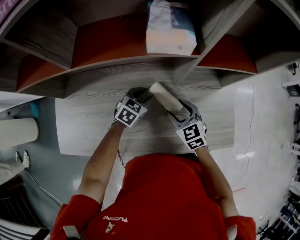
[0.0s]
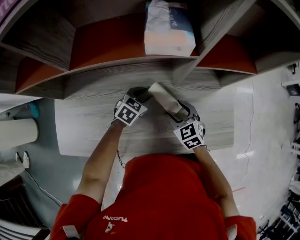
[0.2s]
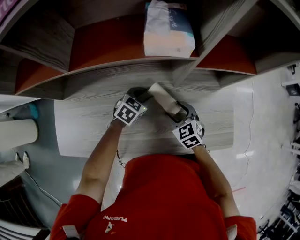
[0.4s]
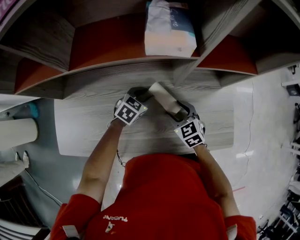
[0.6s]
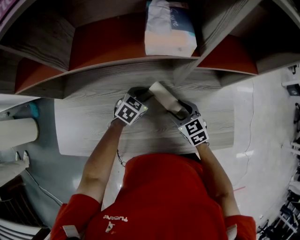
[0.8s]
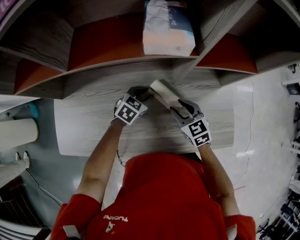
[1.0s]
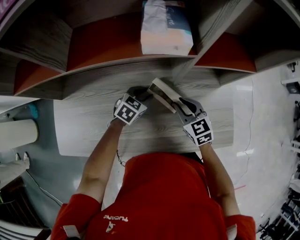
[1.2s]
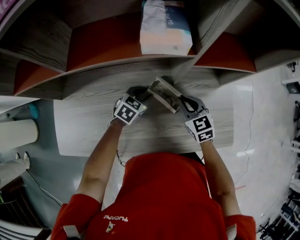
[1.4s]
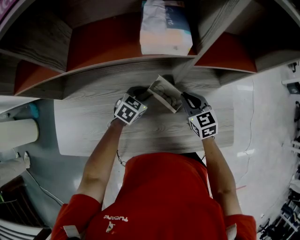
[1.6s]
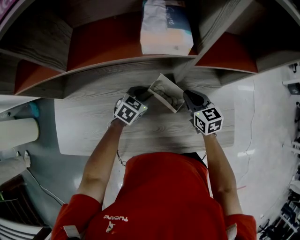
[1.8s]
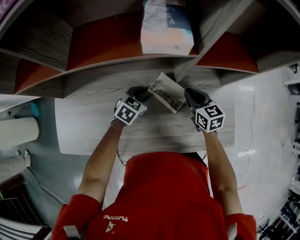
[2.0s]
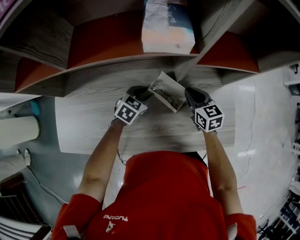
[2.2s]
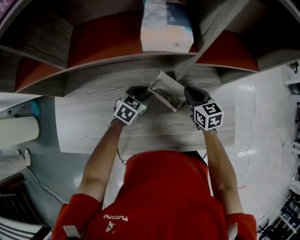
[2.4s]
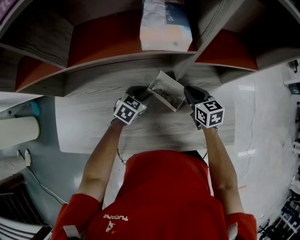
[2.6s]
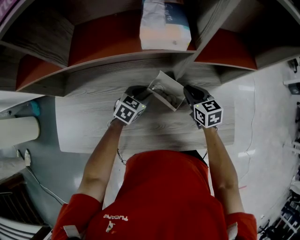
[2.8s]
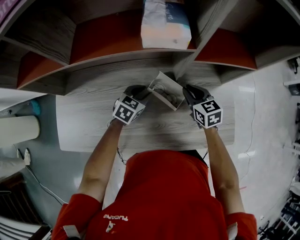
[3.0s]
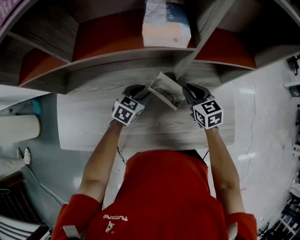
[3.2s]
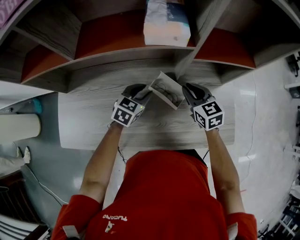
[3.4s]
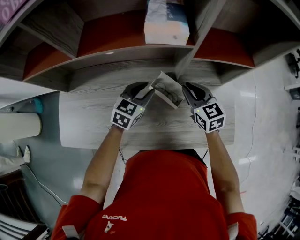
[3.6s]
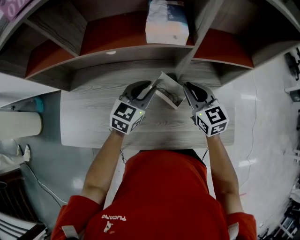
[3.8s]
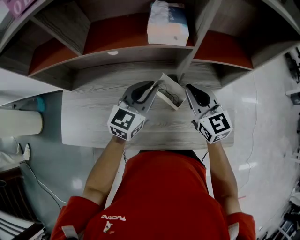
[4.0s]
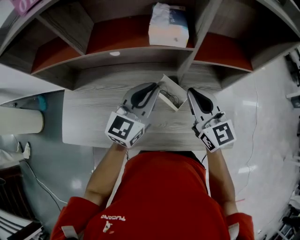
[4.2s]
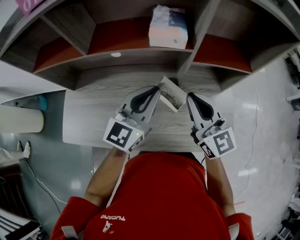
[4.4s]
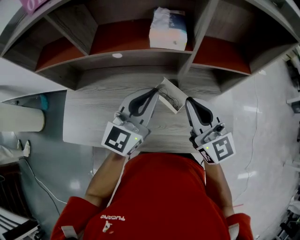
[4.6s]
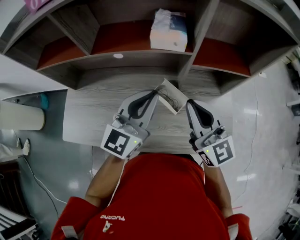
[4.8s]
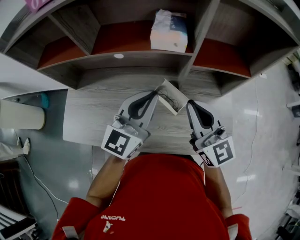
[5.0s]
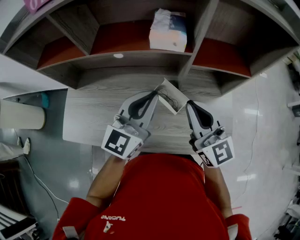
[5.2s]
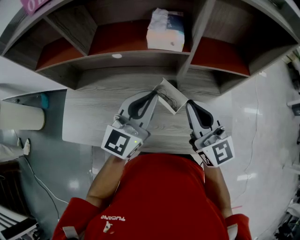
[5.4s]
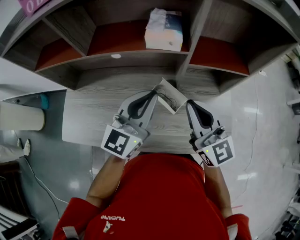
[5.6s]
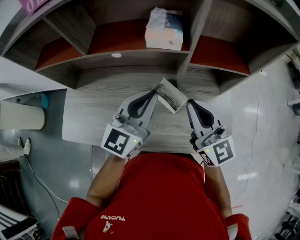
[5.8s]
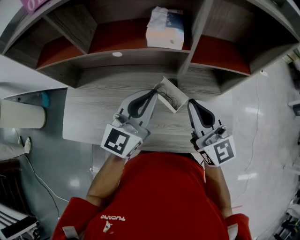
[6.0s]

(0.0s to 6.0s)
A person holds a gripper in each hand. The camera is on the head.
0.0s - 1.6s: The right gripper shifts approximately 5 cm forward, and closes.
1.6s - 3.0s: There are only small adjustments of the grippers.
3.0s - 4.4s: Both grippers move upward, some 25 cm. The right gripper points its fingers about 40 degrees further upward; the left gripper points its fingers about 40 degrees further upward, and closes up.
4.4s - 6.0s: The grippers make only small movements.

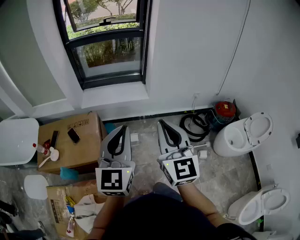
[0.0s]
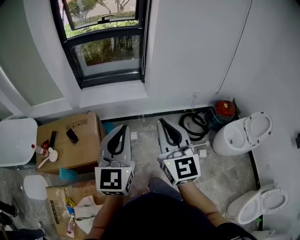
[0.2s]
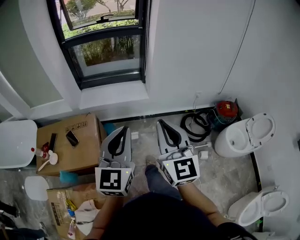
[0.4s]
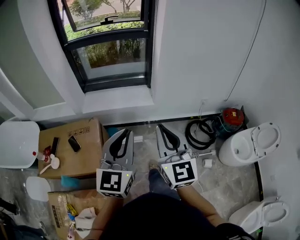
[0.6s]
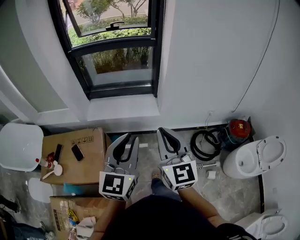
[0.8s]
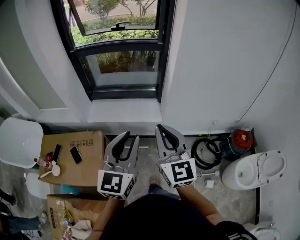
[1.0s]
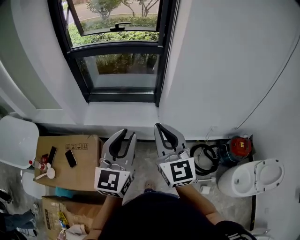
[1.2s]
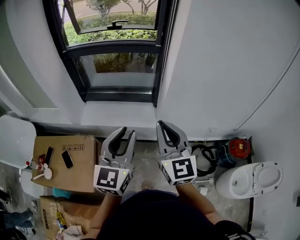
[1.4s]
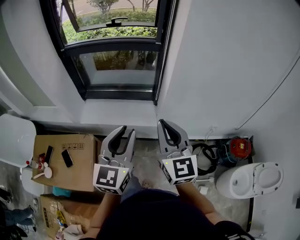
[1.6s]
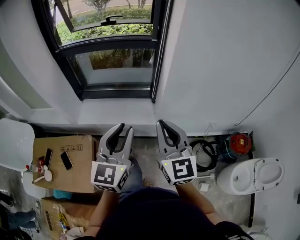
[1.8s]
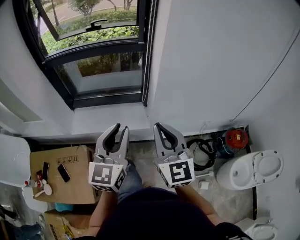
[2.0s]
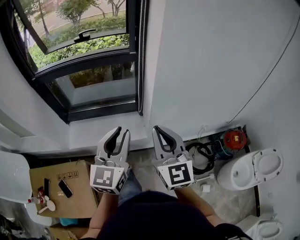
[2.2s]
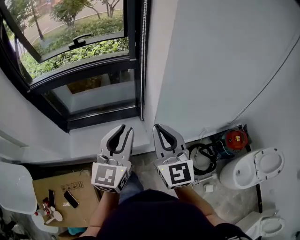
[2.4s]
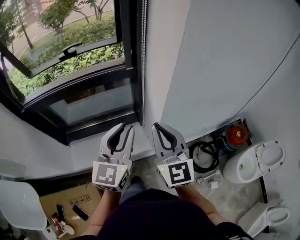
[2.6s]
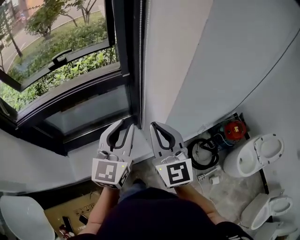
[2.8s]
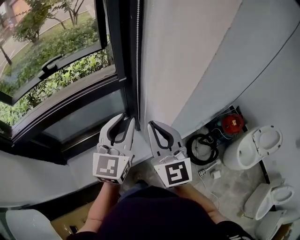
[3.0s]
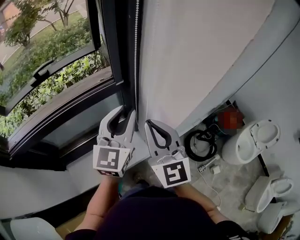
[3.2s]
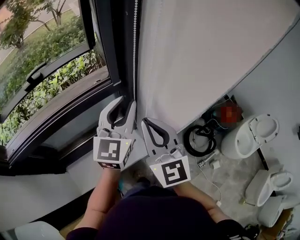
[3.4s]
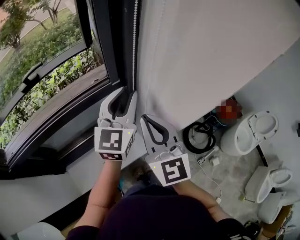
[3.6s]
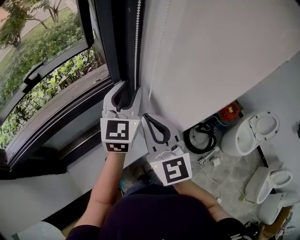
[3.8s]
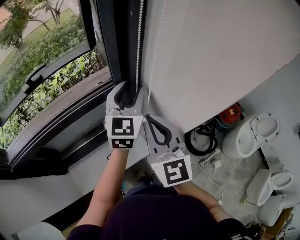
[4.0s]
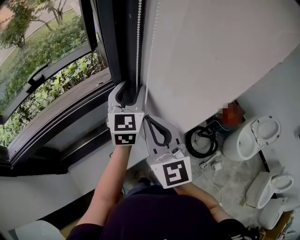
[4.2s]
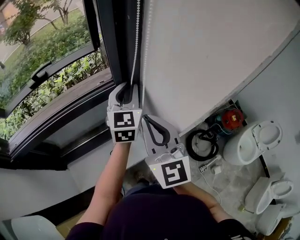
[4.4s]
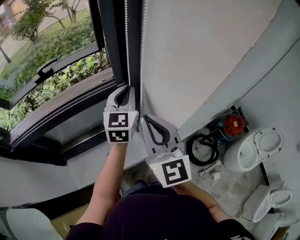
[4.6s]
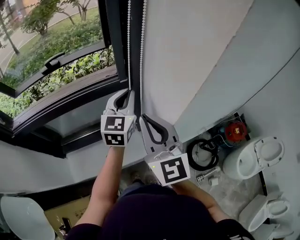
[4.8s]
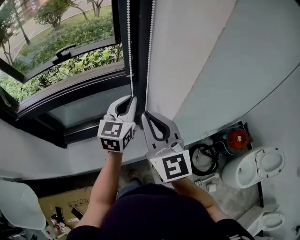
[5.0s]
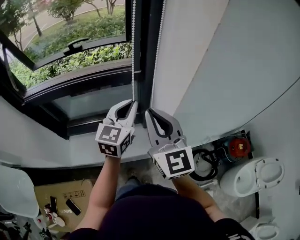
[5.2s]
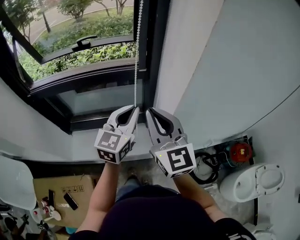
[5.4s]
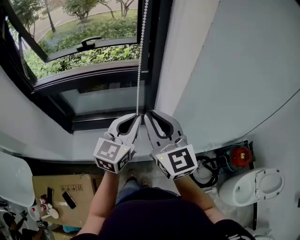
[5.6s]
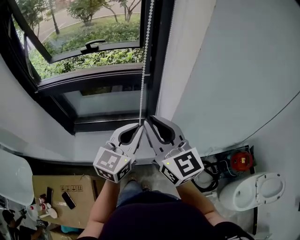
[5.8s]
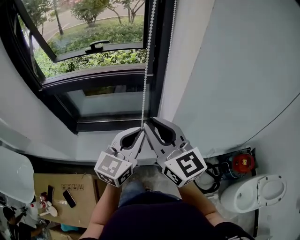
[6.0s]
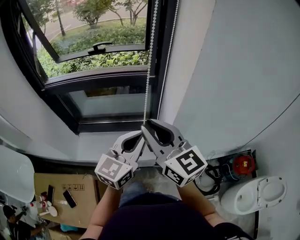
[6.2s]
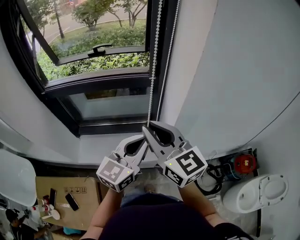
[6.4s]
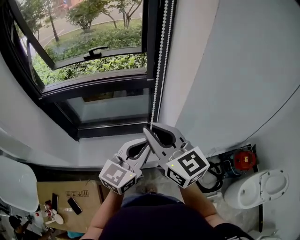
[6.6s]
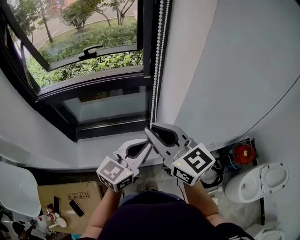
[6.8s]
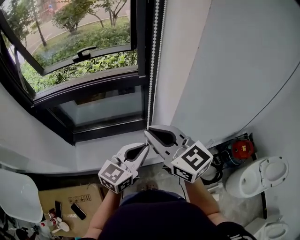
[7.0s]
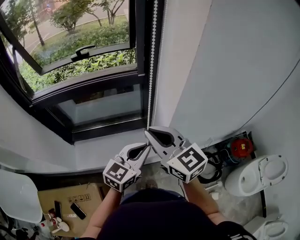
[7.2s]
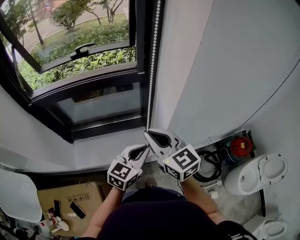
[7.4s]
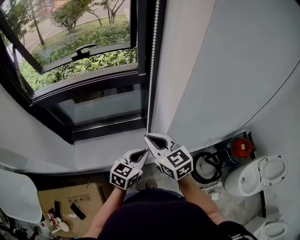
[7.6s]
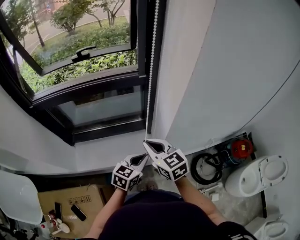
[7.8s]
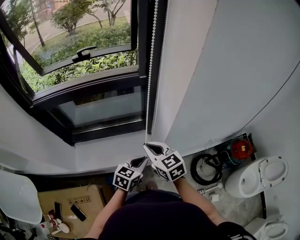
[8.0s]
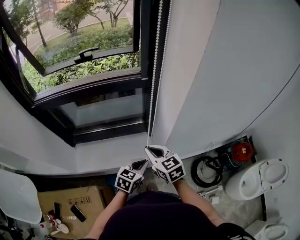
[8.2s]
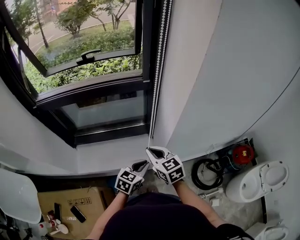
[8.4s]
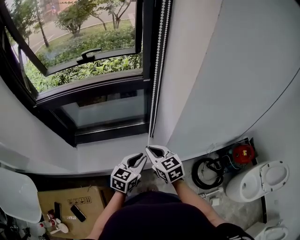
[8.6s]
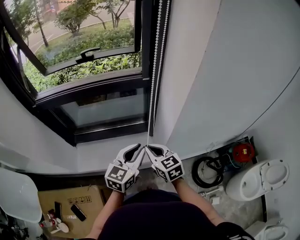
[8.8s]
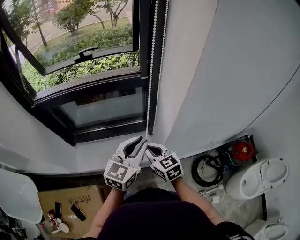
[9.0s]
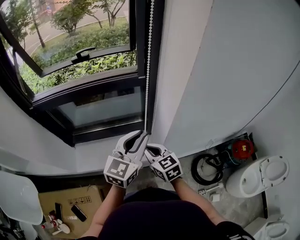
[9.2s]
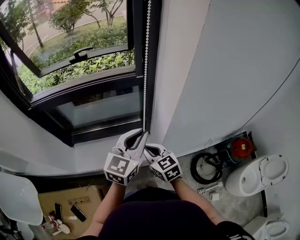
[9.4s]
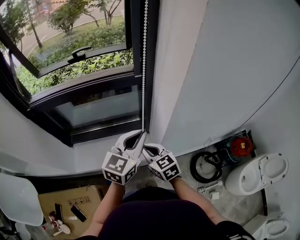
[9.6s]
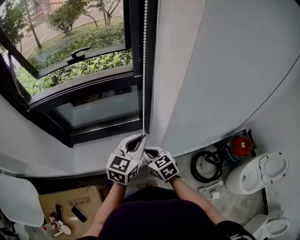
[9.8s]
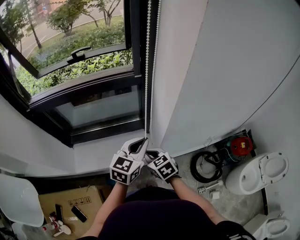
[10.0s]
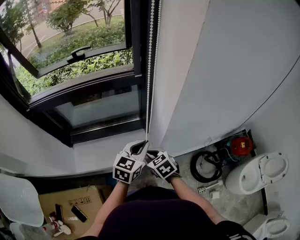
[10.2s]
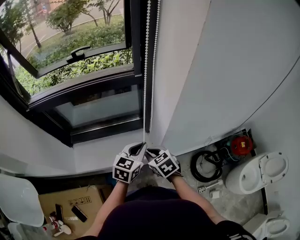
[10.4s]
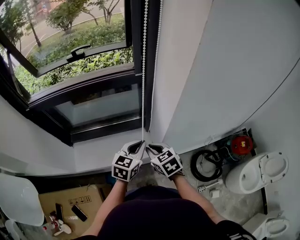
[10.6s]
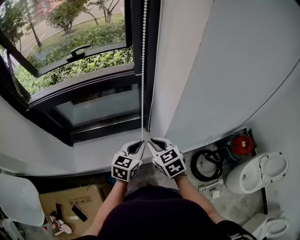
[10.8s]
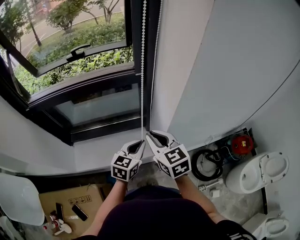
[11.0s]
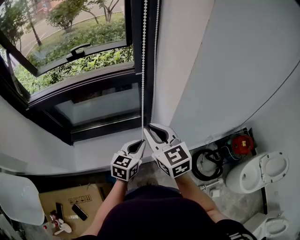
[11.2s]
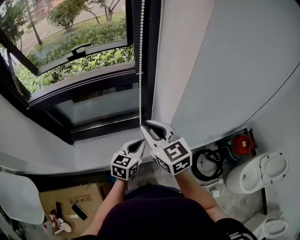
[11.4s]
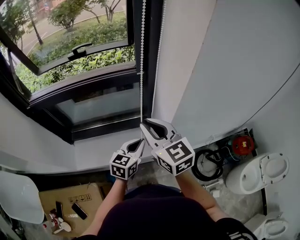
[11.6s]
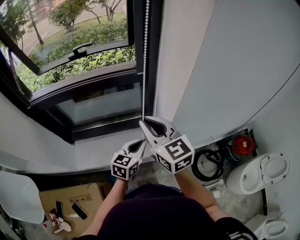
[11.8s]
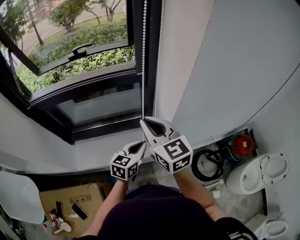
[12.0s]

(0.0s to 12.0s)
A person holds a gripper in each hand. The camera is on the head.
0.0s - 1.6s: Both grippers travel together forward, about 40 cm.
1.6s - 3.0s: The right gripper ends up about 30 cm from where it was, and changes its angle by some 30 degrees, while the left gripper shifts by about 40 cm, and turns by about 30 degrees.
3.0s - 4.4s: The right gripper moves forward, roughly 5 cm. The left gripper moves forward, approximately 15 cm, and opens and closes again.
4.4s - 6.0s: The left gripper travels backward by some 30 cm, while the right gripper goes approximately 15 cm backward, and turns by about 40 degrees.
6.0s - 7.6s: Both grippers move downward, some 15 cm. The right gripper changes its angle by about 20 degrees; the left gripper swivels about 30 degrees.
7.6s - 9.0s: The left gripper shifts approximately 10 cm upward; the right gripper travels downward by approximately 10 cm.
9.0s - 10.4s: The left gripper travels downward by roughly 10 cm. The right gripper shifts some 5 cm downward, and rotates about 20 degrees.
10.4s - 12.0s: The right gripper shifts about 20 cm upward, and angles its fingers upward, by roughly 30 degrees.

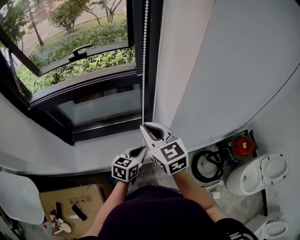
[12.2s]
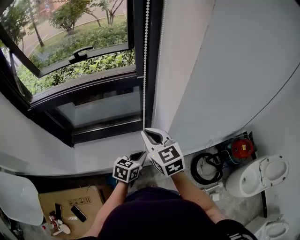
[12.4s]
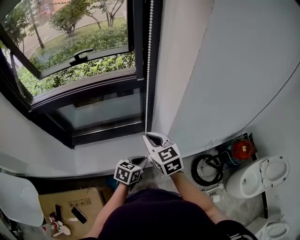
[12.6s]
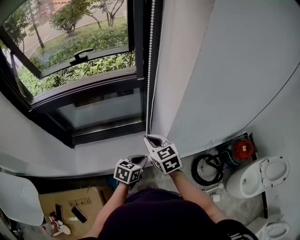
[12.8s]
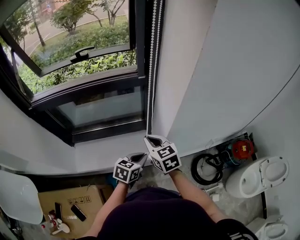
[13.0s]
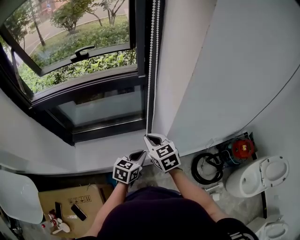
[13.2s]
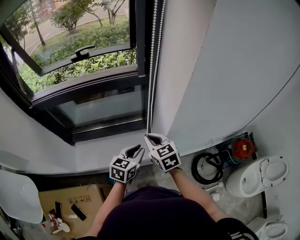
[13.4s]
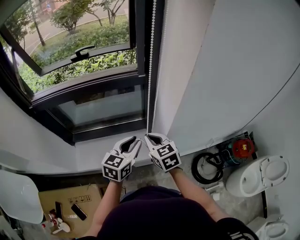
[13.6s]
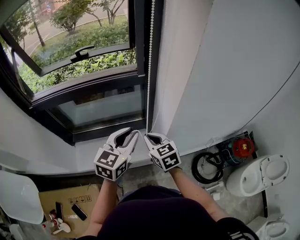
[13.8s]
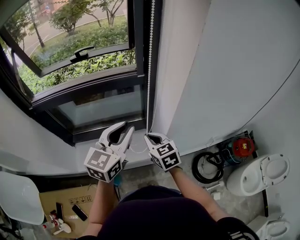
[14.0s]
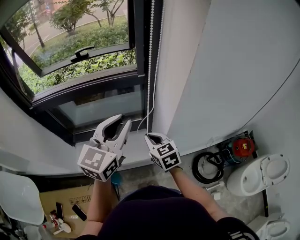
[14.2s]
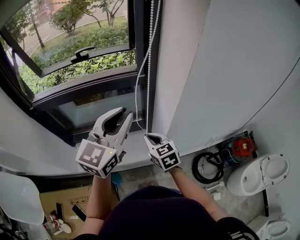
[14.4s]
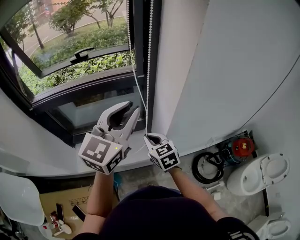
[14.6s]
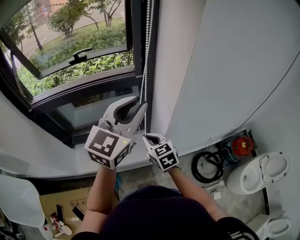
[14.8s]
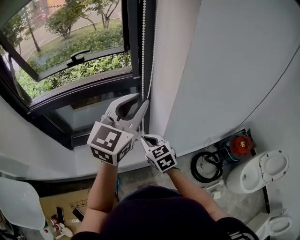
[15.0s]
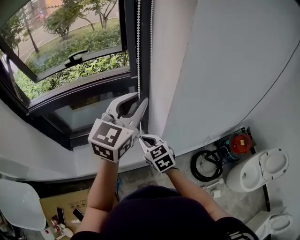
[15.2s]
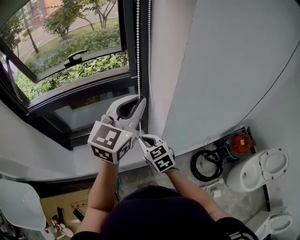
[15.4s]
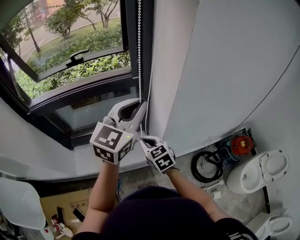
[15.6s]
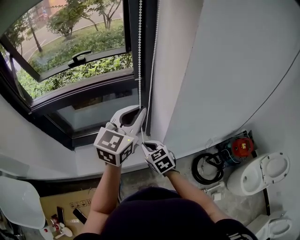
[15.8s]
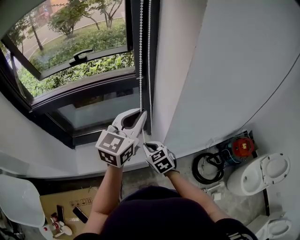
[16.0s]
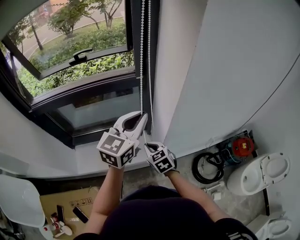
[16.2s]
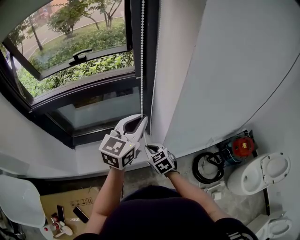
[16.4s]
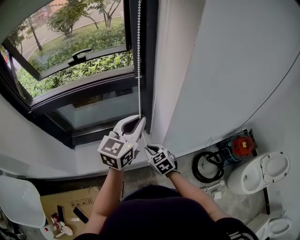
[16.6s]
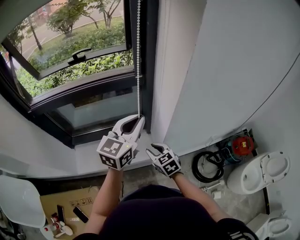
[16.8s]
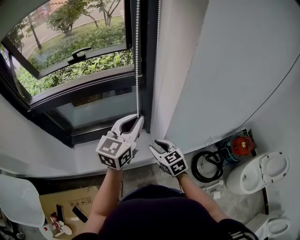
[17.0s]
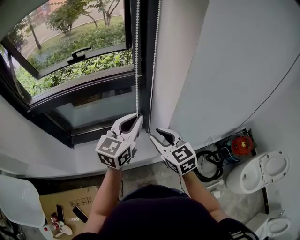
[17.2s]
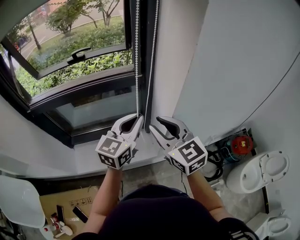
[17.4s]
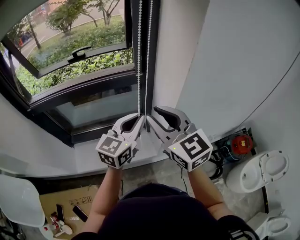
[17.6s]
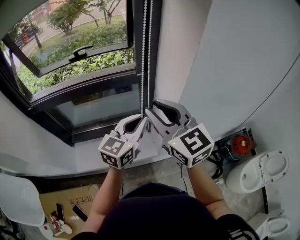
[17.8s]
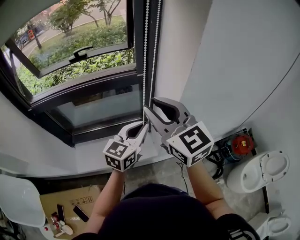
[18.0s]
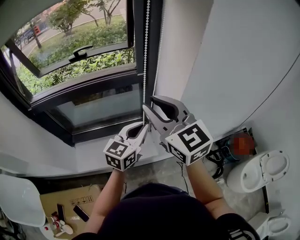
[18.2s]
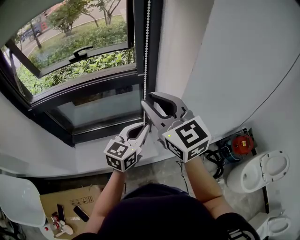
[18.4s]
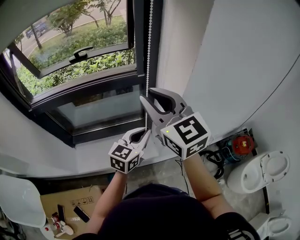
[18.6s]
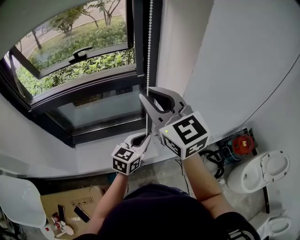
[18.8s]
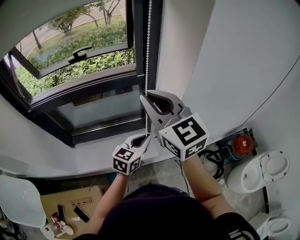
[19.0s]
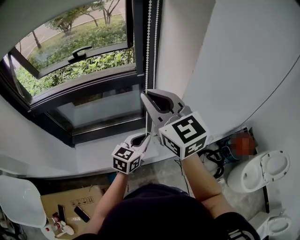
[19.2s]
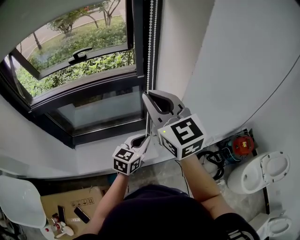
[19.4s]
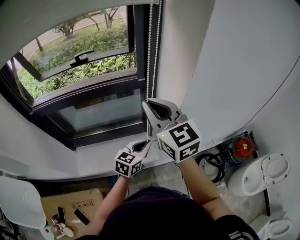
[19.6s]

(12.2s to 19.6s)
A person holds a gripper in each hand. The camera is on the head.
12.2s - 13.6s: The right gripper goes roughly 10 cm downward; the left gripper heads upward, covering approximately 10 cm.
13.6s - 15.2s: The left gripper goes about 20 cm upward, and swivels about 30 degrees.
15.2s - 16.6s: The two grippers go some 10 cm downward.
16.6s - 18.2s: The left gripper heads downward, covering approximately 5 cm. Meanwhile the right gripper travels upward by approximately 35 cm, and tilts its fingers some 30 degrees upward.
18.2s - 19.6s: The left gripper heads downward, covering approximately 10 cm.
